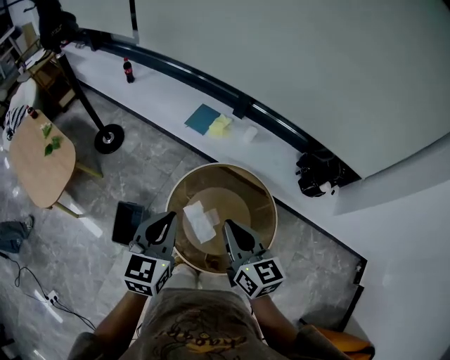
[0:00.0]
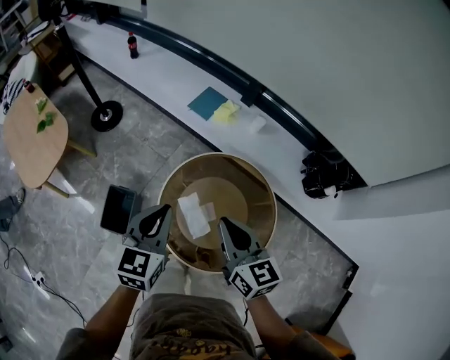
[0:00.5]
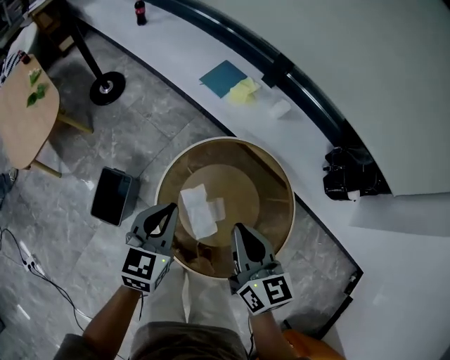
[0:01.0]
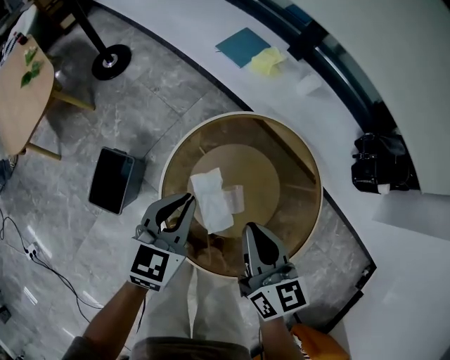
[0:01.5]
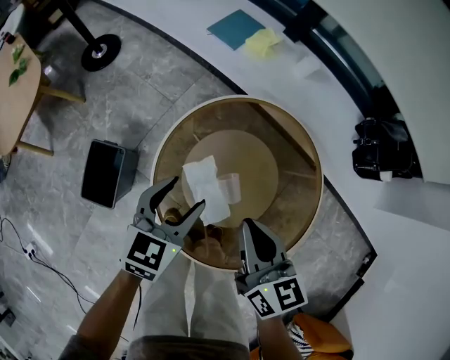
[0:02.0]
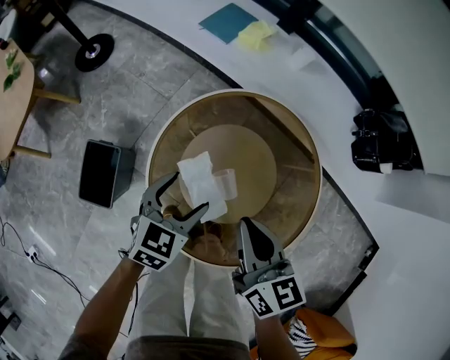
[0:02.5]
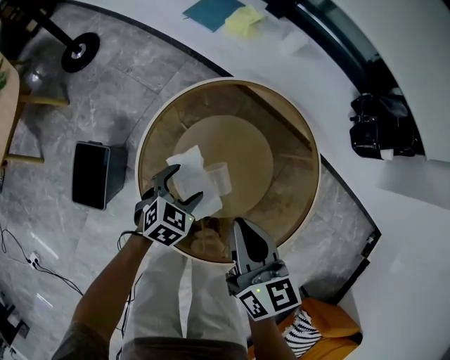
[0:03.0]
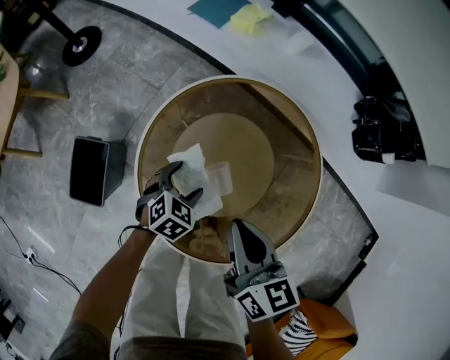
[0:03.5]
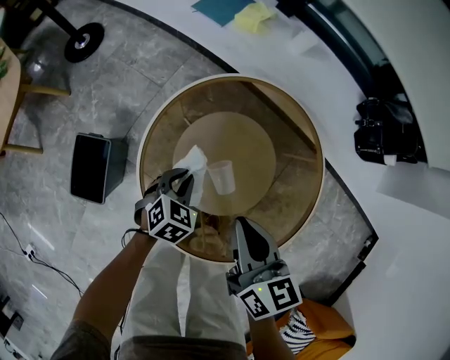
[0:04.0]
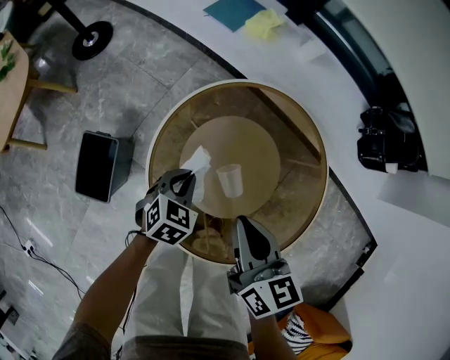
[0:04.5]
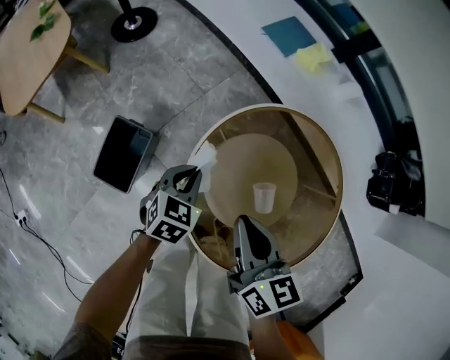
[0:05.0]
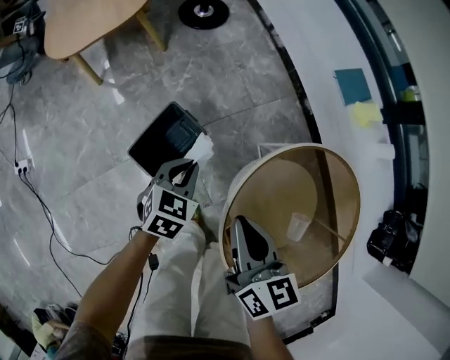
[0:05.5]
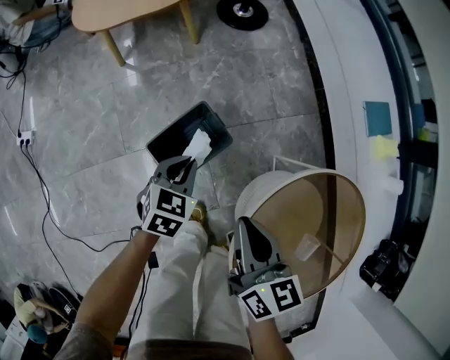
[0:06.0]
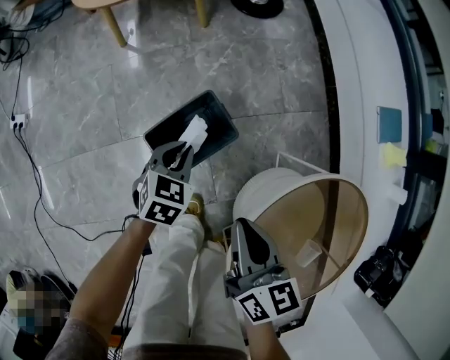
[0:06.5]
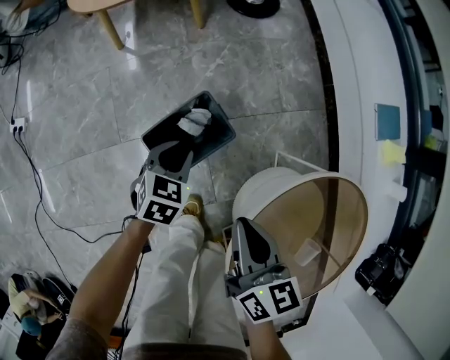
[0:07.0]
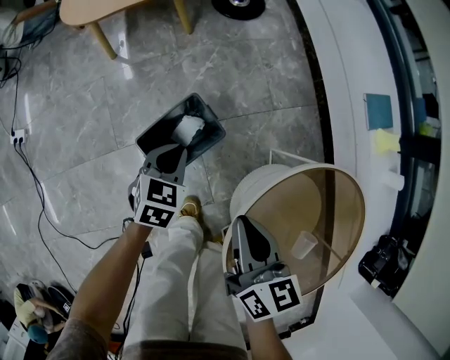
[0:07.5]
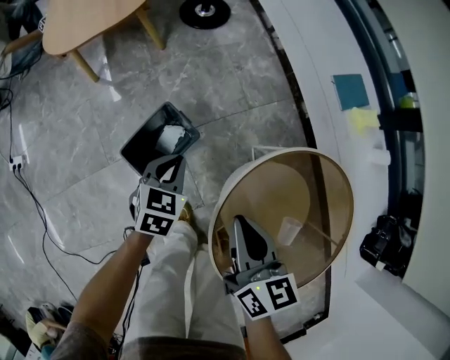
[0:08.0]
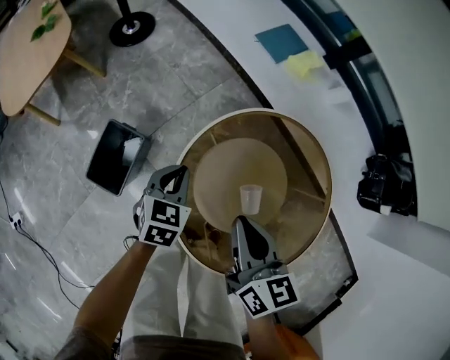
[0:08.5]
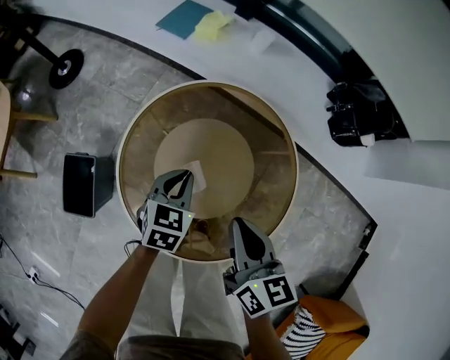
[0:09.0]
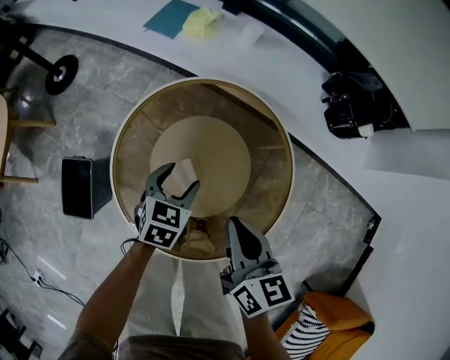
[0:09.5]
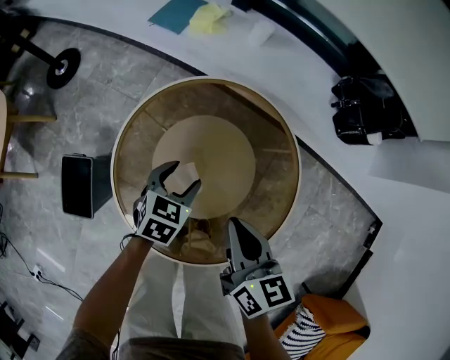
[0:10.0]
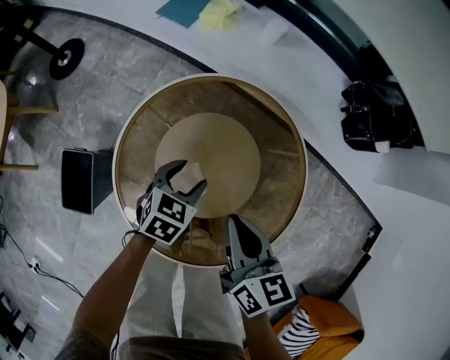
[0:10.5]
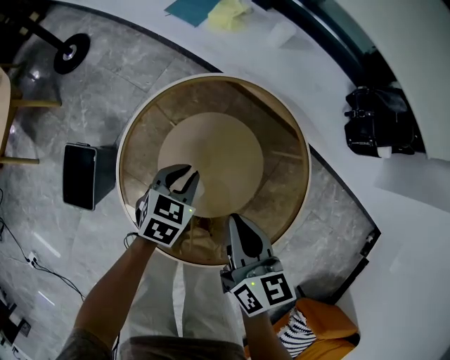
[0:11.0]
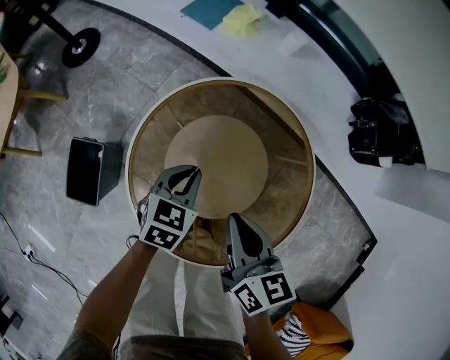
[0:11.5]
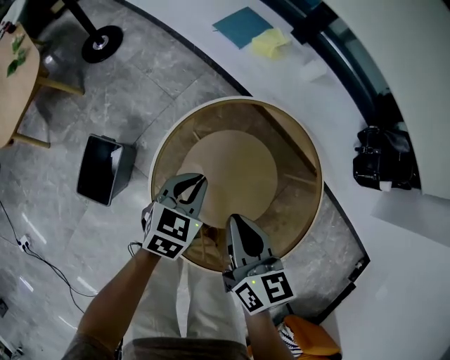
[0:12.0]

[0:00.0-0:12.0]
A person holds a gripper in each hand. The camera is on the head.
0:00.0 to 0:02.0: The two grippers go approximately 30 cm downward. The left gripper opens its fingers.
0:02.0 to 0:04.0: The left gripper is displaced downward by approximately 15 cm, turns by roughly 30 degrees, and closes its fingers.
0:04.0 to 0:06.0: The left gripper ends up some 40 cm from where it was, and rotates around the line of its fingers by approximately 40 degrees, counterclockwise from behind. Meanwhile the right gripper ends up about 35 cm from where it was, and rotates some 40 degrees.
0:06.0 to 0:08.0: Both grippers travel together to the right, roughly 5 cm.
0:08.0 to 0:10.0: The left gripper shifts by roughly 40 cm, changes its angle by roughly 50 degrees, and opens. The right gripper ends up roughly 35 cm from where it was, and swivels approximately 40 degrees.
0:10.0 to 0:12.0: The left gripper is displaced to the left and upward by approximately 10 cm, and closes up. The right gripper moves to the left, about 10 cm.

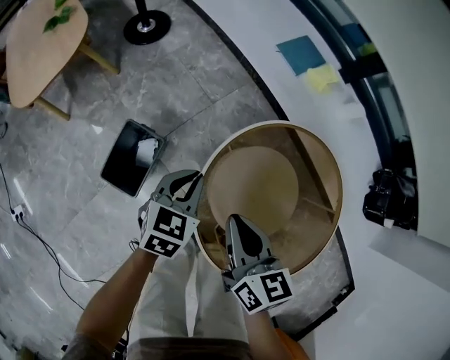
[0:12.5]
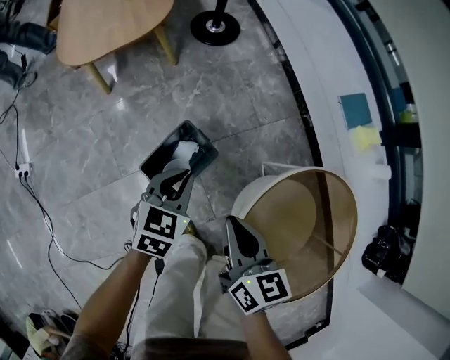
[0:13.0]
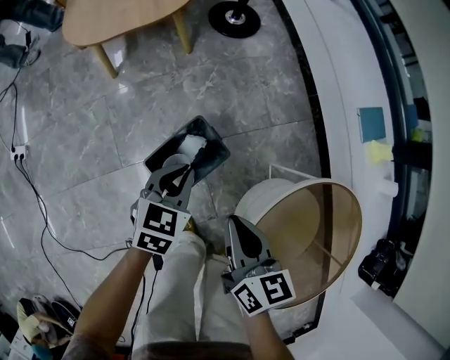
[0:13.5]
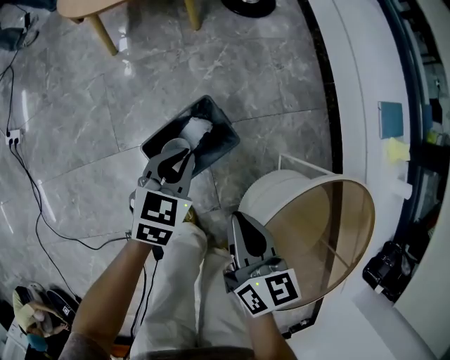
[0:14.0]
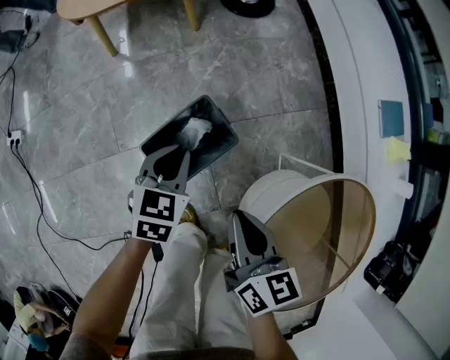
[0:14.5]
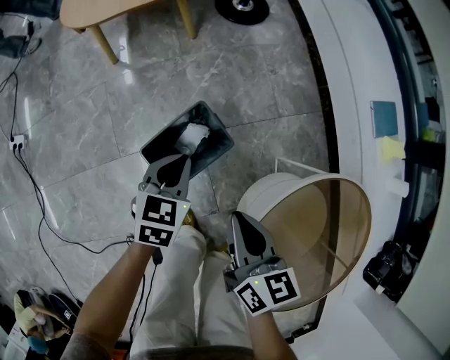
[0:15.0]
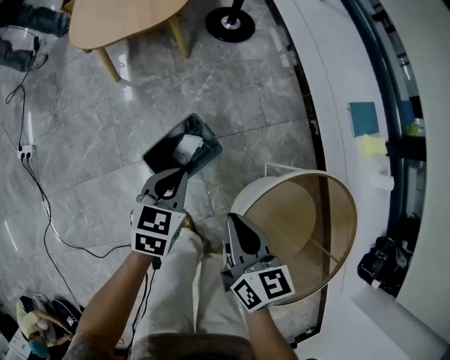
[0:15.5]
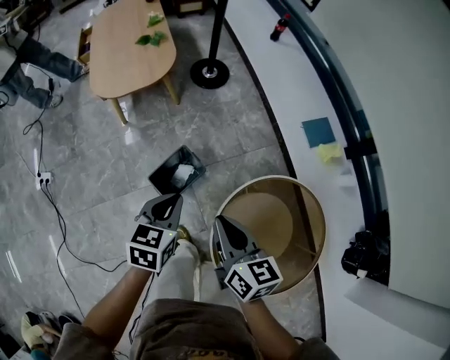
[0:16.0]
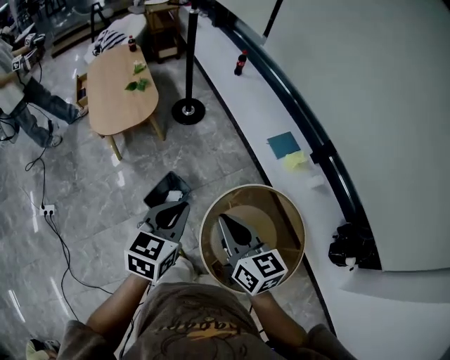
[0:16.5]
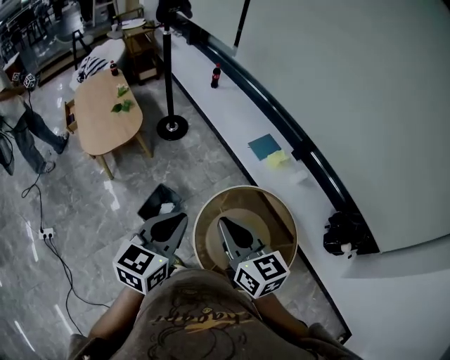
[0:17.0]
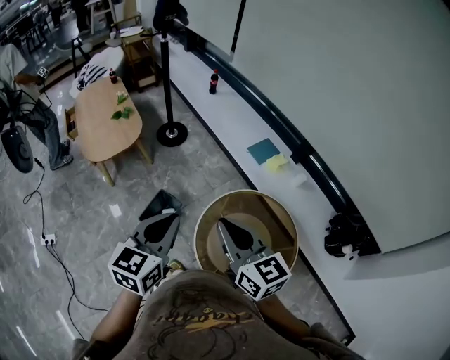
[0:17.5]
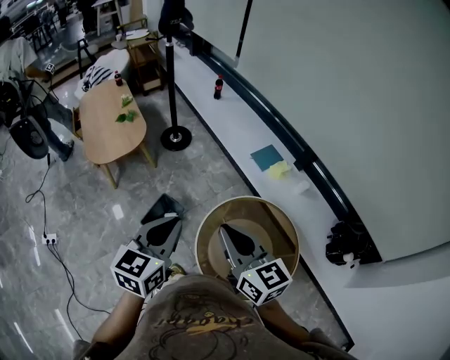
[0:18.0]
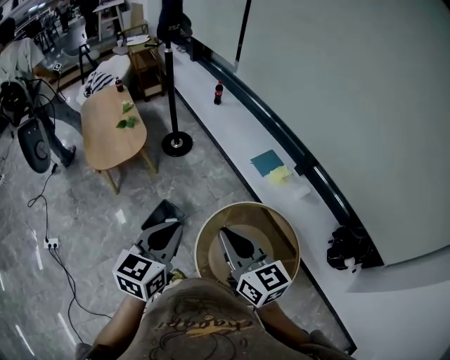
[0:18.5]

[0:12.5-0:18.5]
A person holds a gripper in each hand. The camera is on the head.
0:12.5 to 0:14.5: The right gripper ends up roughly 20 cm from where it was, and turns by roughly 20 degrees; the left gripper ends up approximately 30 cm from where it was, and changes its angle by roughly 30 degrees.
0:14.5 to 0:16.5: The two grippers go roughly 50 cm upward. The left gripper rotates roughly 20 degrees. Meanwhile the right gripper swivels roughly 20 degrees.
0:16.5 to 0:18.5: The right gripper goes roughly 10 cm upward and to the right. Meanwhile the left gripper travels upward by roughly 5 cm.

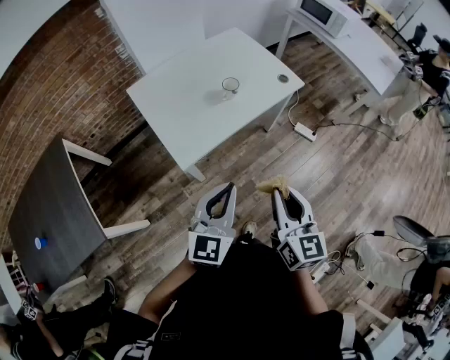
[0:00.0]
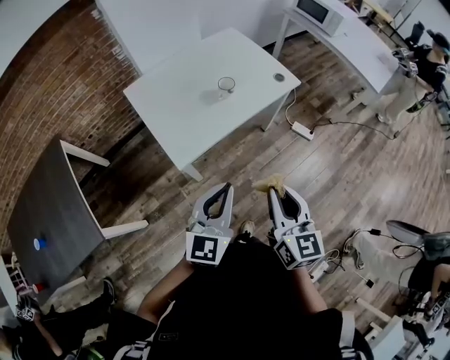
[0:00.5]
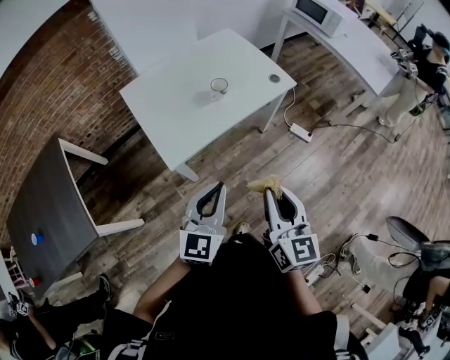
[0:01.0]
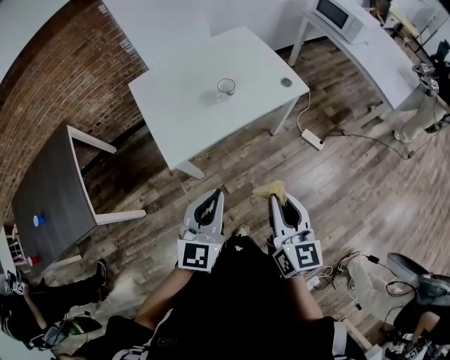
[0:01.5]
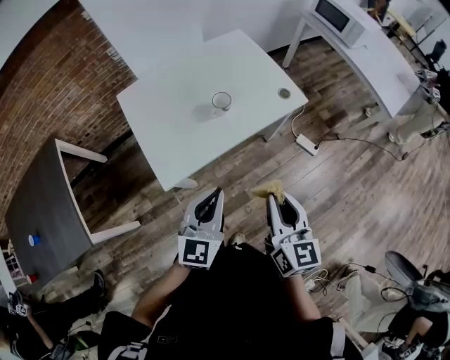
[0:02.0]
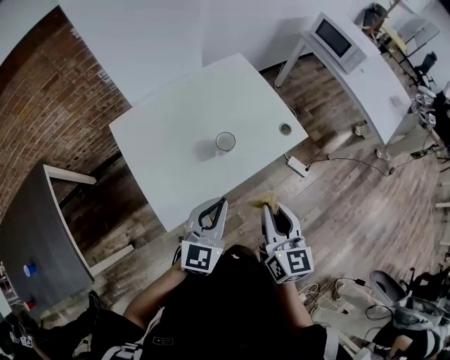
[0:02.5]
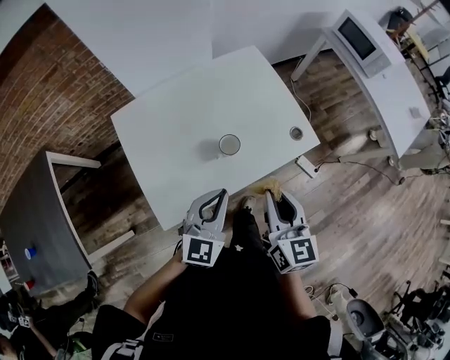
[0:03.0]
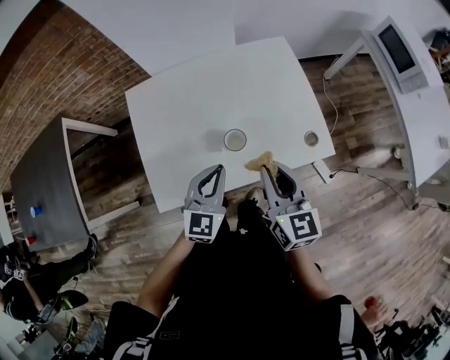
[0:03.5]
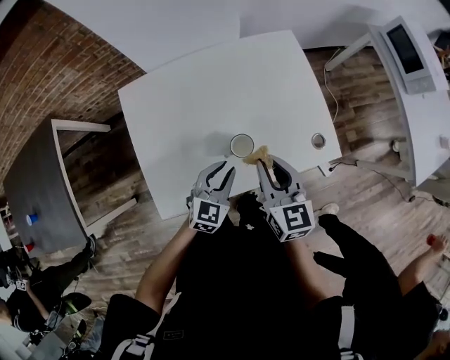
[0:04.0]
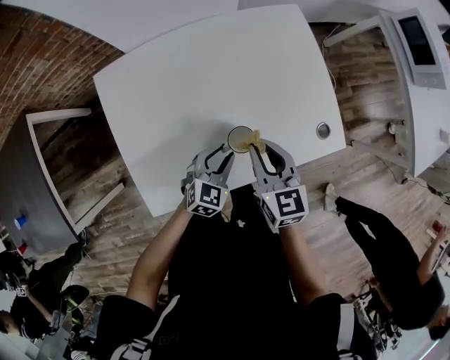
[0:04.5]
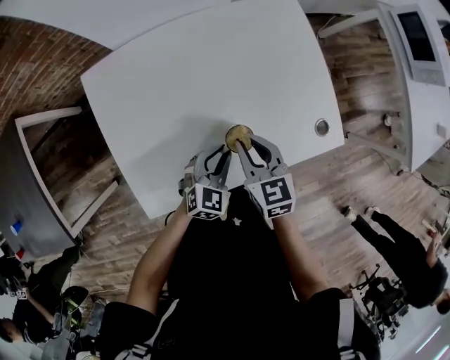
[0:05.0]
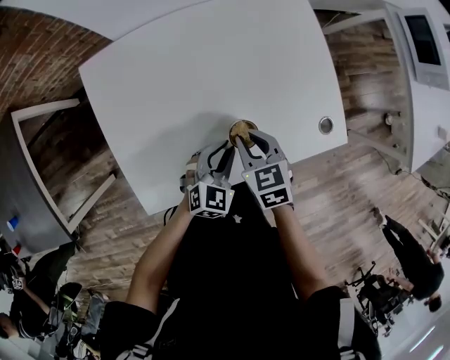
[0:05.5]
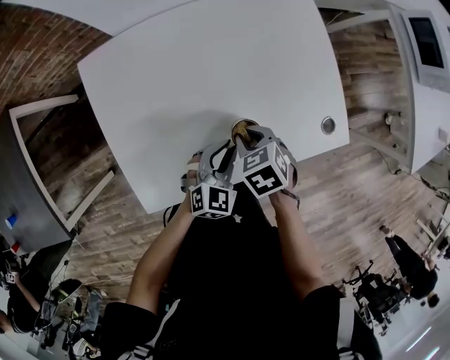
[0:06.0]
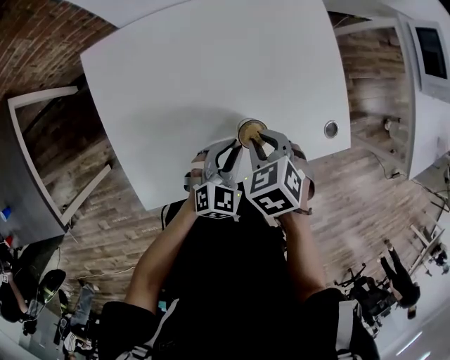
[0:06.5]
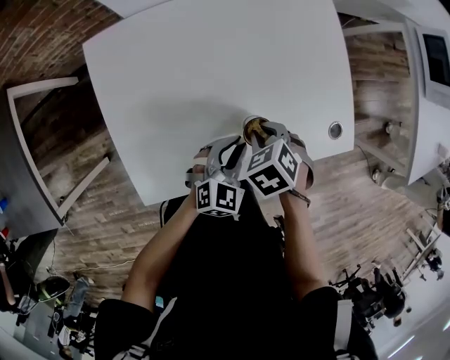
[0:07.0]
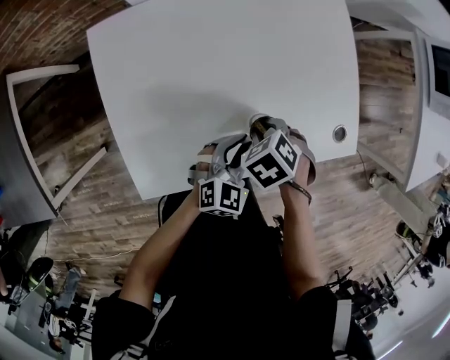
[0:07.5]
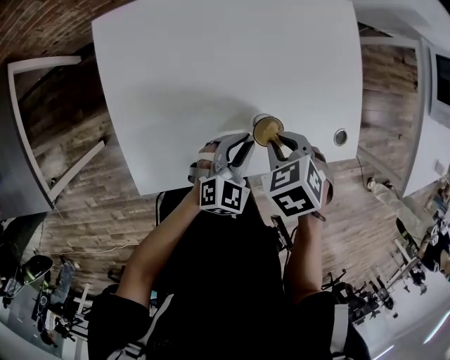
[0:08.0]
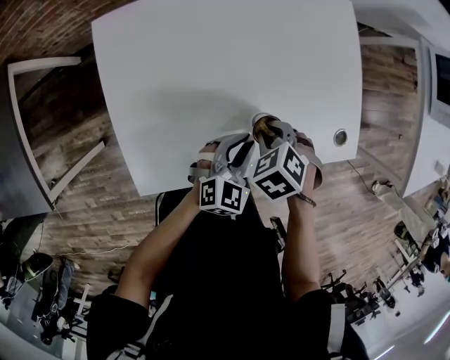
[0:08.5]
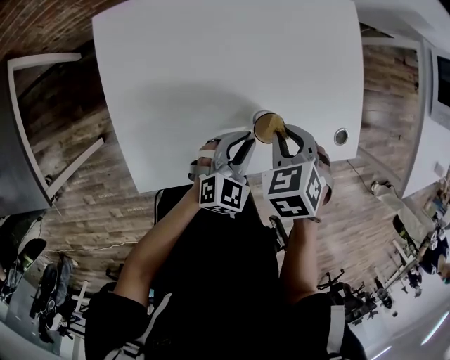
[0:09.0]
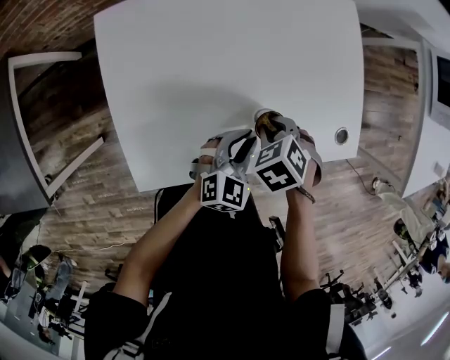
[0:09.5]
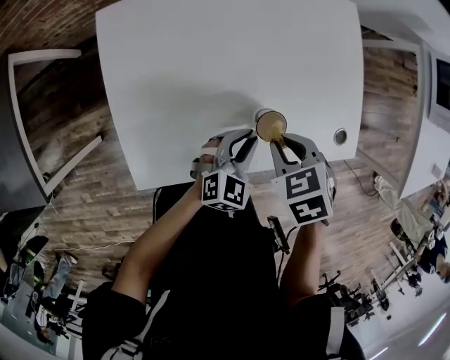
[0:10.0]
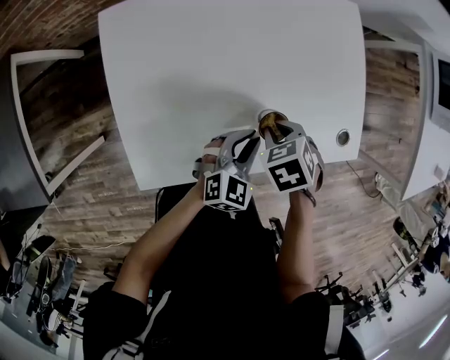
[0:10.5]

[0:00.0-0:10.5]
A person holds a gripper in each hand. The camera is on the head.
0:00.0 to 0:02.0: The right gripper is displaced forward and to the right by roughly 15 cm. Meanwhile the left gripper goes about 10 cm forward.
0:02.0 to 0:04.0: The left gripper heads forward and downward, covering some 35 cm, rotates approximately 20 degrees, and opens up. Meanwhile the right gripper shifts roughly 35 cm forward, and changes its angle by about 30 degrees.
0:04.0 to 0:06.5: The right gripper heads downward, covering some 15 cm, and angles its fingers downward, by some 50 degrees; the left gripper shifts roughly 10 cm downward.
0:06.5 to 0:08.5: The right gripper goes up and down, some 5 cm each way, reversing 2 times.
0:08.5 to 0:10.5: The right gripper goes up and down, about 5 cm each way, reversing 3 times.
